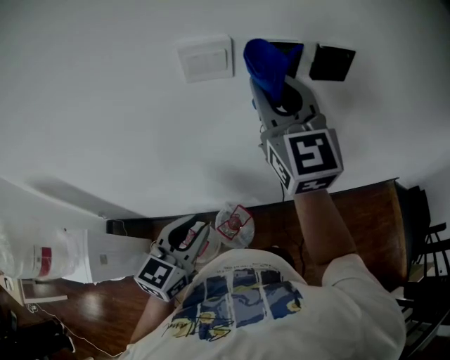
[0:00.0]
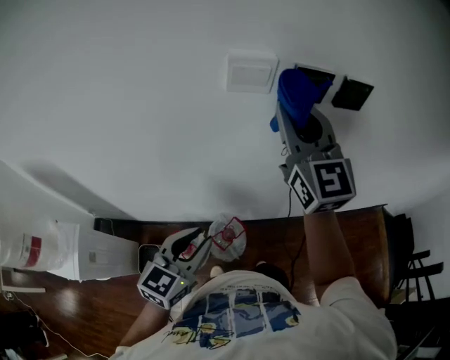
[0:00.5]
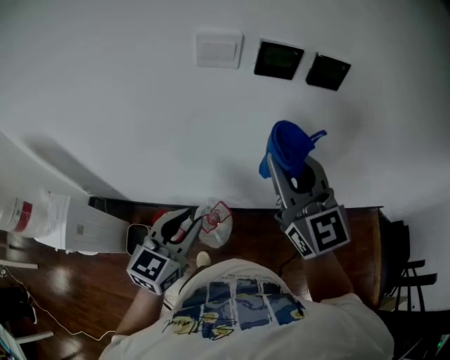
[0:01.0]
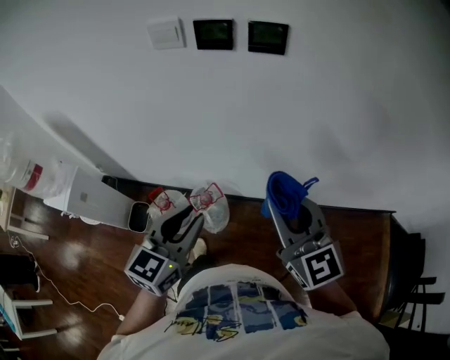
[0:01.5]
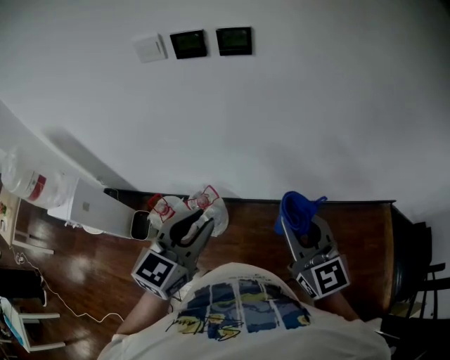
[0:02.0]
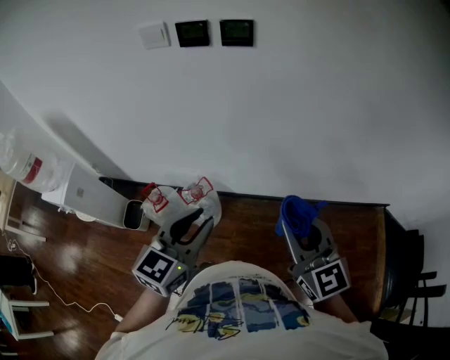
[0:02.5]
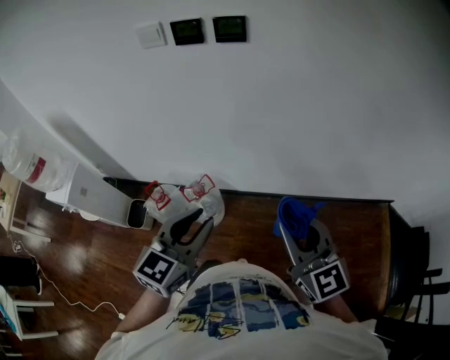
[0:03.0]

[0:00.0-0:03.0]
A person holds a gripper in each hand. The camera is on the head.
0:00.0 to 0:01.5: The left gripper goes about 25 cm to the right and backward. The right gripper heads backward, to the right and downward, covering some 35 cm, and turns by about 30 degrees.
0:01.5 to 0:03.0: Both grippers move backward and to the right, approximately 15 cm.

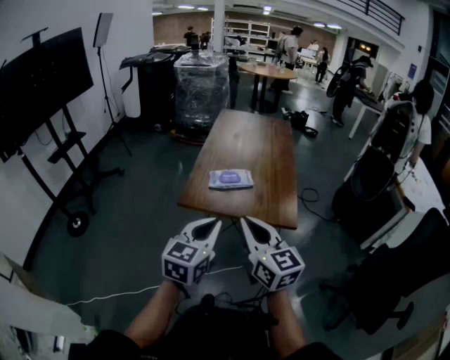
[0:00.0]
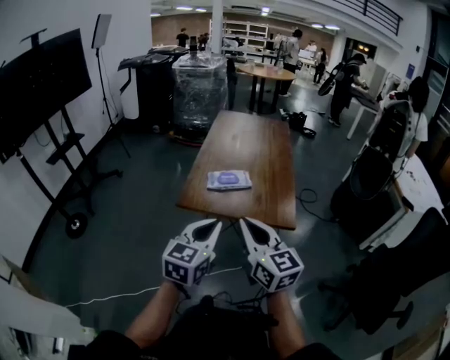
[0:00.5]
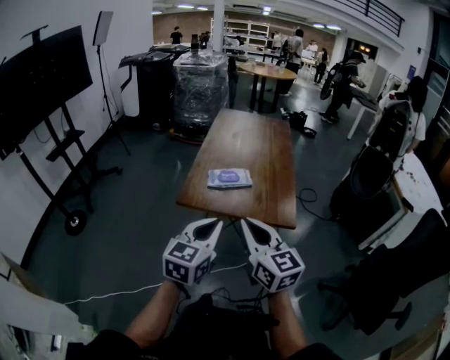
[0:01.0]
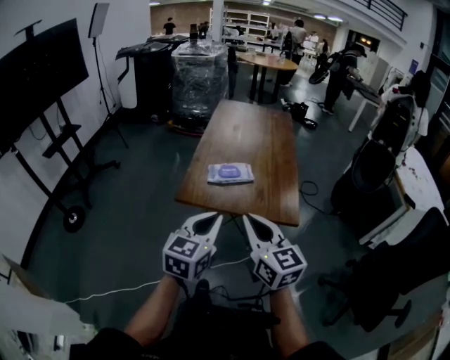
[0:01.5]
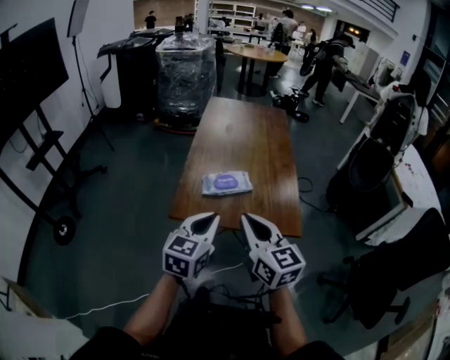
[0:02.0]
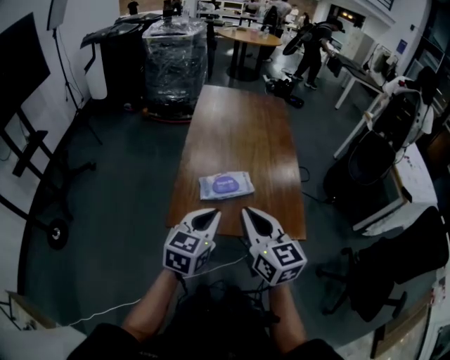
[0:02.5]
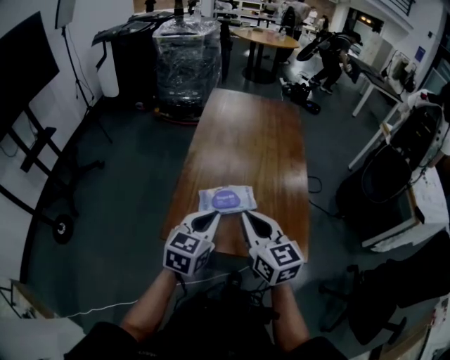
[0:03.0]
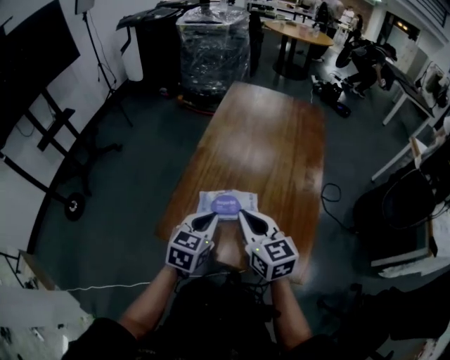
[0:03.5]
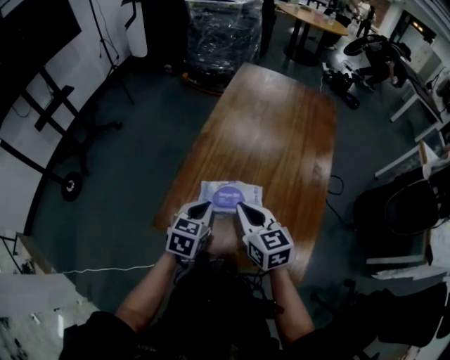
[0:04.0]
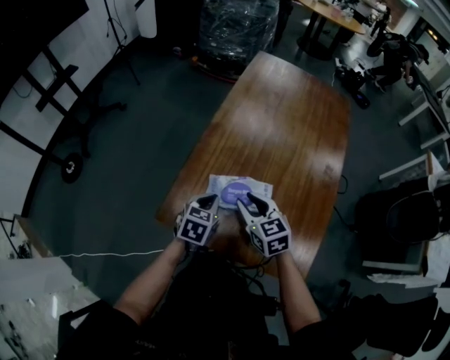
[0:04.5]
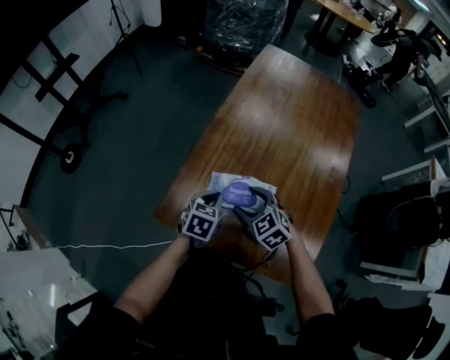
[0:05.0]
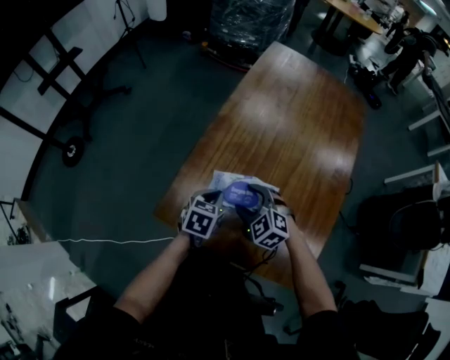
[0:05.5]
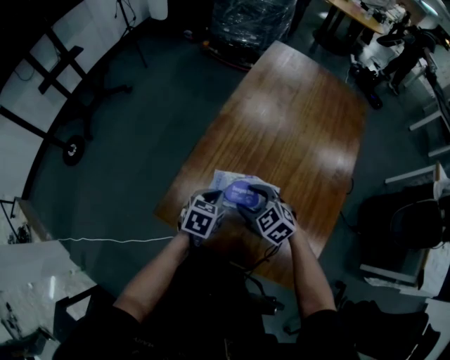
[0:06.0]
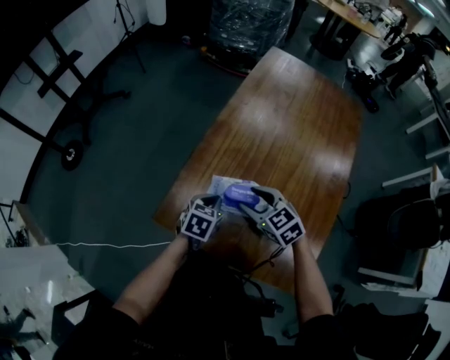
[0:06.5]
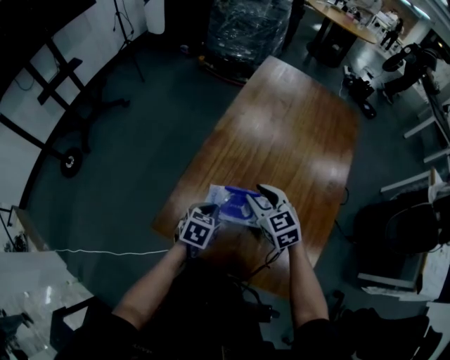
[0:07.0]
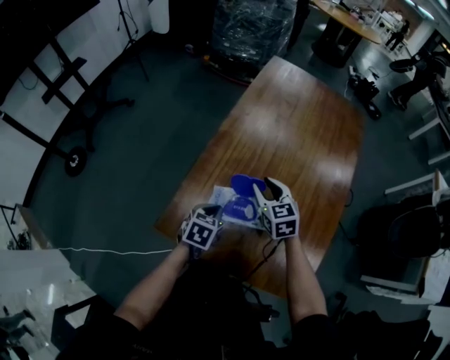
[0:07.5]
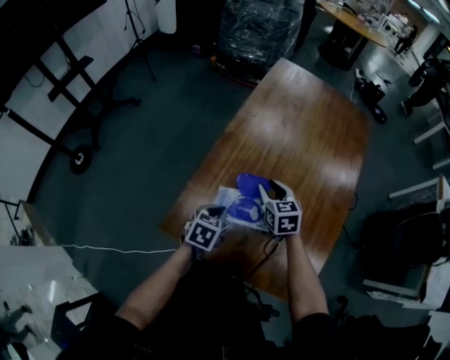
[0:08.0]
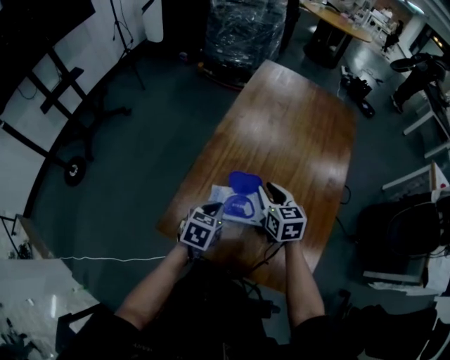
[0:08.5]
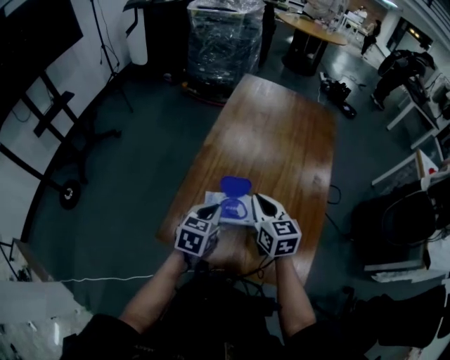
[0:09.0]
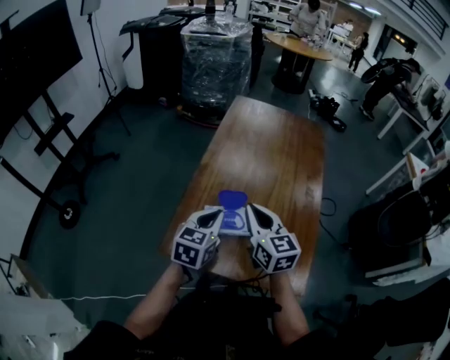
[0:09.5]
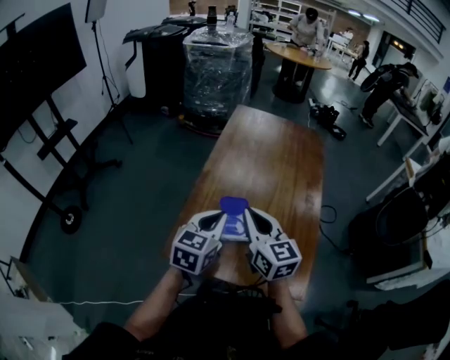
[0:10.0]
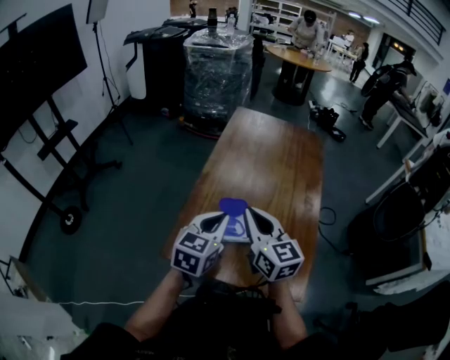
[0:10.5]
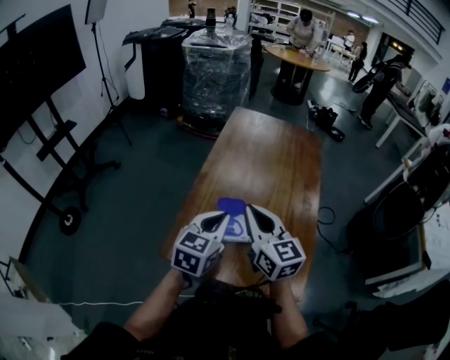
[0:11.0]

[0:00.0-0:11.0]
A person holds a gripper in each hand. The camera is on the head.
0:00.0 to 0:02.0: The two grippers go some 10 cm forward.
0:02.0 to 0:03.5: The left gripper travels forward and downward by some 20 cm. Meanwhile the right gripper shifts approximately 20 cm forward.
0:03.5 to 0:05.5: The two grippers go approximately 15 cm downward and forward. The left gripper swivels about 20 degrees, while the right gripper changes its angle by approximately 60 degrees, and opens its fingers.
0:05.5 to 0:07.5: The right gripper travels forward and to the right by about 10 cm, turns by some 40 degrees, and closes up.
0:07.5 to 0:09.0: The right gripper travels upward and backward by roughly 10 cm, and closes up. The left gripper is displaced upward by about 10 cm.
0:09.0 to 0:11.0: The left gripper moves upward, some 15 cm; the right gripper shifts about 15 cm upward and backward.

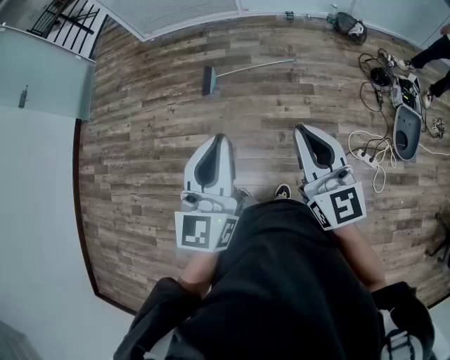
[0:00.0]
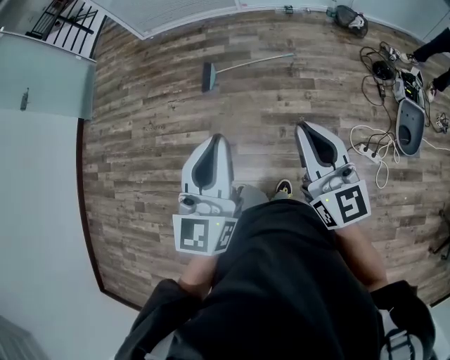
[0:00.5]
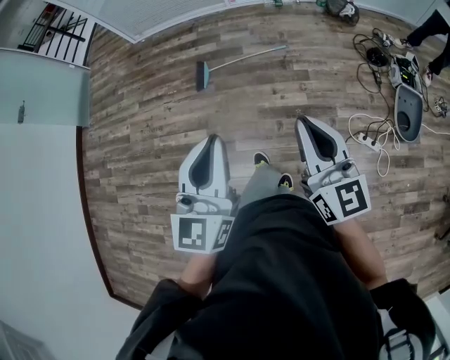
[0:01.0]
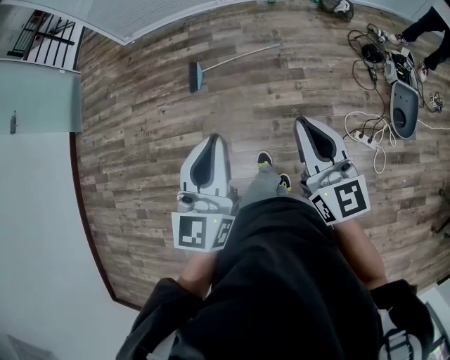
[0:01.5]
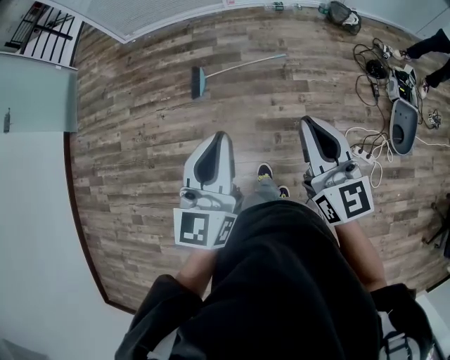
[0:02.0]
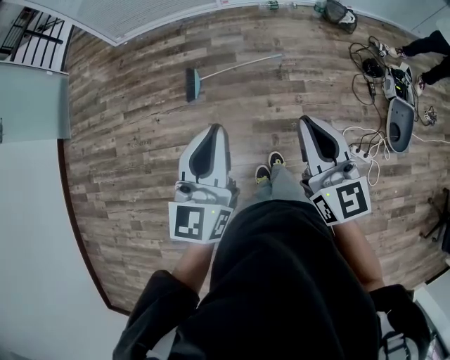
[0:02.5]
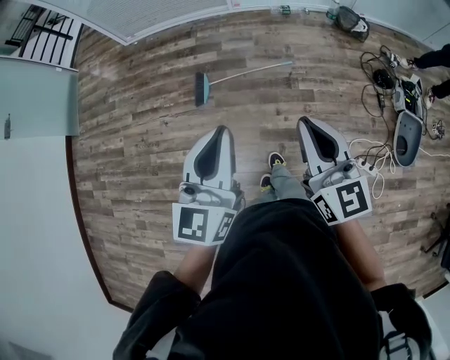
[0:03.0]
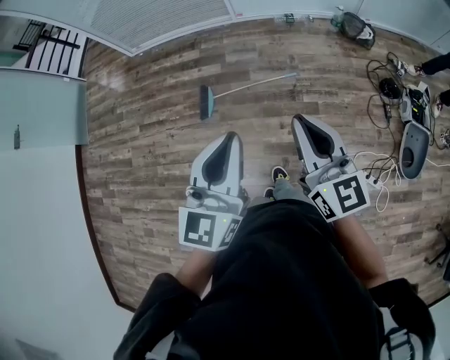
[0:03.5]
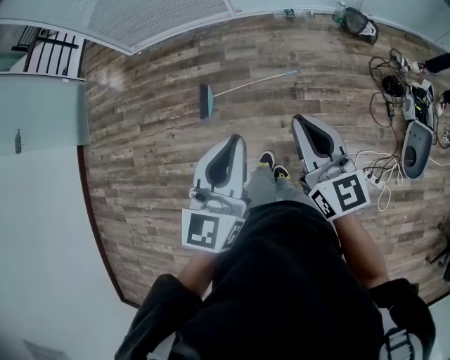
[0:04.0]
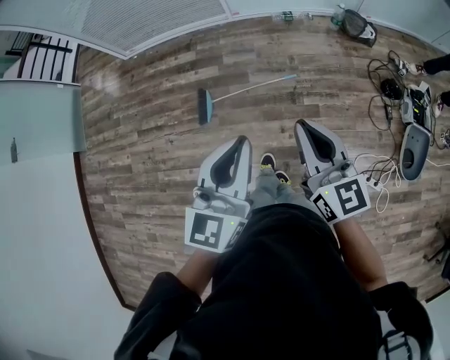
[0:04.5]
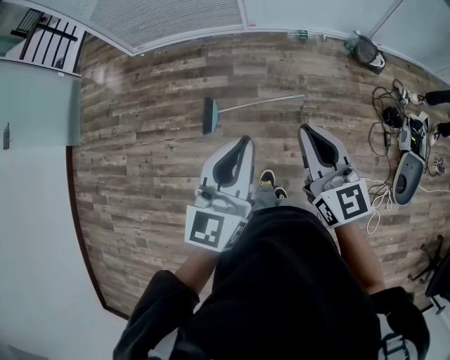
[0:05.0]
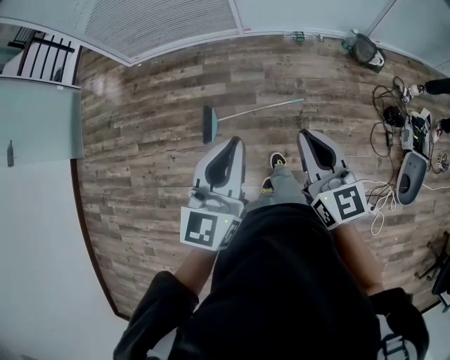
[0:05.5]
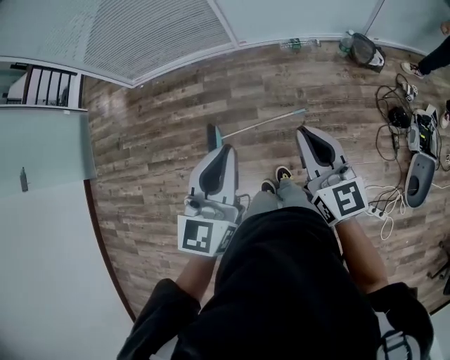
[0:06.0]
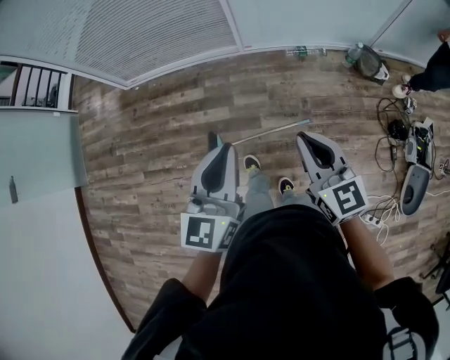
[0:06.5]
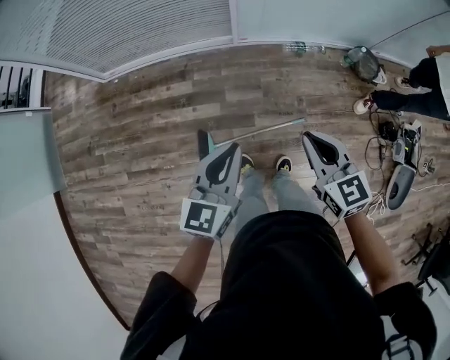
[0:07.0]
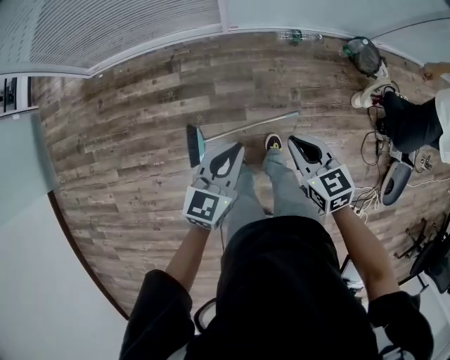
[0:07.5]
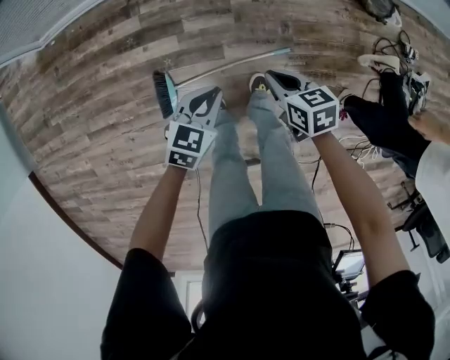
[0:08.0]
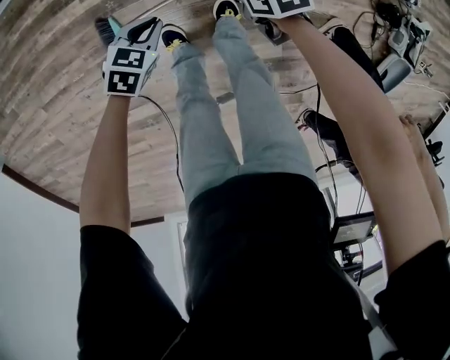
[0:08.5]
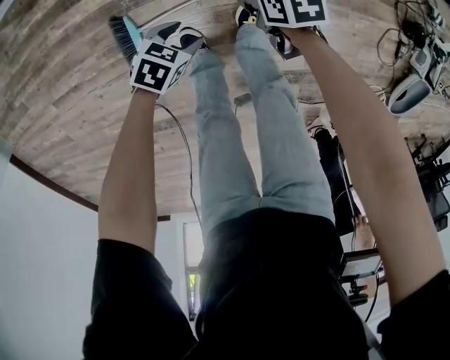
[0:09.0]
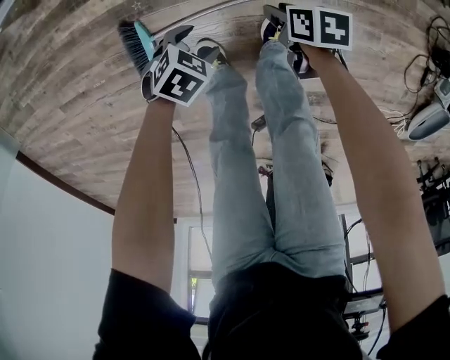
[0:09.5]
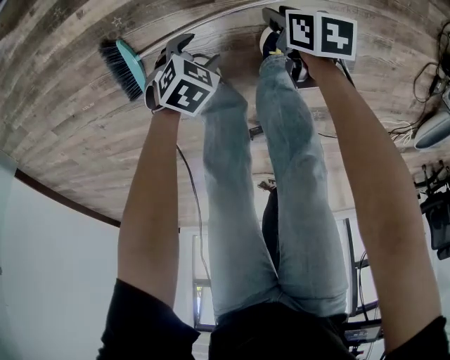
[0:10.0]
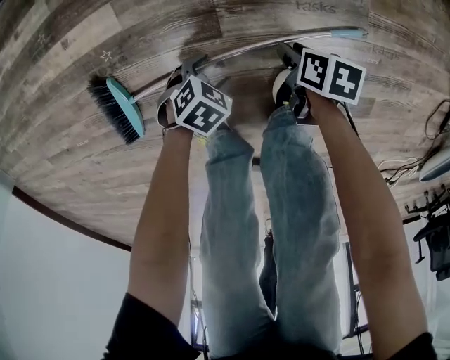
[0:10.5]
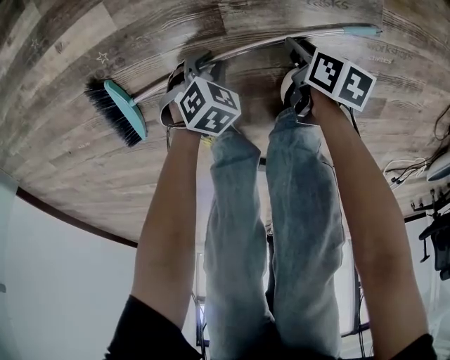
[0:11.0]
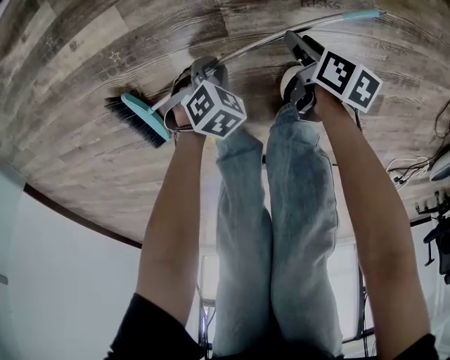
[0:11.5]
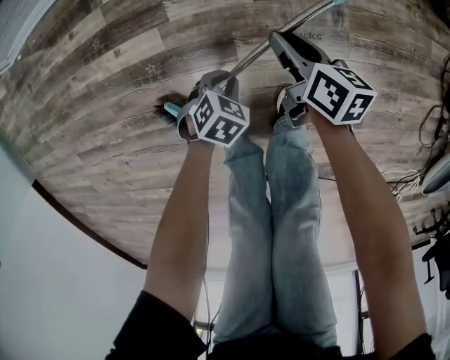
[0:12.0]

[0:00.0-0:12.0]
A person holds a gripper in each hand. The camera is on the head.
0:00.0 to 0:02.0: The two grippers go about 15 cm forward.
0:02.0 to 0:04.0: The right gripper is displaced forward by some 25 cm. Meanwhile the left gripper heads forward and to the right, covering about 25 cm.
0:04.0 to 0:06.0: Both grippers travel together forward, about 25 cm.
0:06.0 to 0:08.0: Both grippers move downward and forward, about 50 cm. The right gripper angles its fingers downward, by some 40 degrees. Meanwhile the left gripper points its fingers some 40 degrees further downward.
0:08.0 to 0:10.0: The grippers both shift downward by some 50 cm. The right gripper rotates roughly 30 degrees, and opens. Meanwhile the left gripper changes its angle by roughly 40 degrees, and opens its fingers.
0:10.0 to 0:12.0: The right gripper goes downward and returns, about 20 cm each way, and swivels roughly 30 degrees, while the left gripper reaches some 20 cm downward, then returns, and closes.
